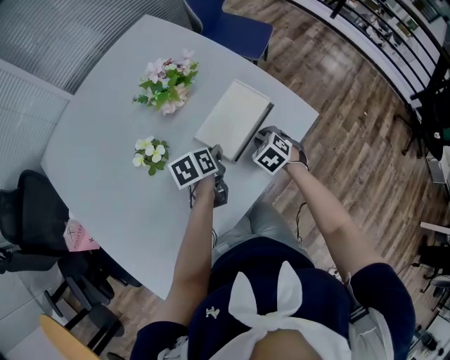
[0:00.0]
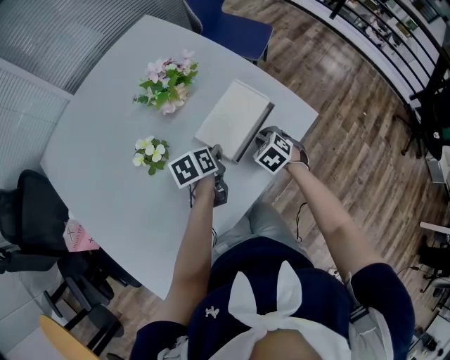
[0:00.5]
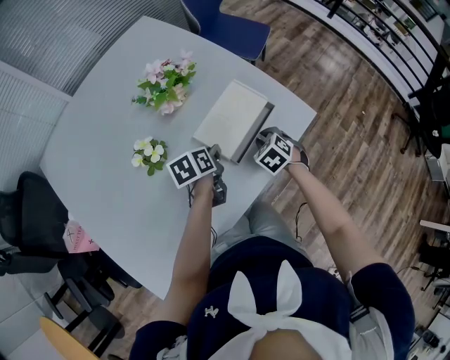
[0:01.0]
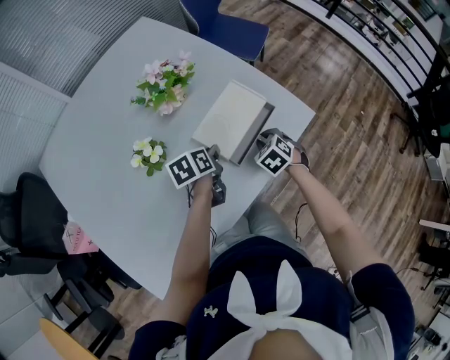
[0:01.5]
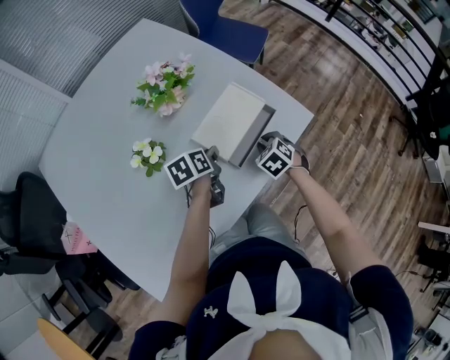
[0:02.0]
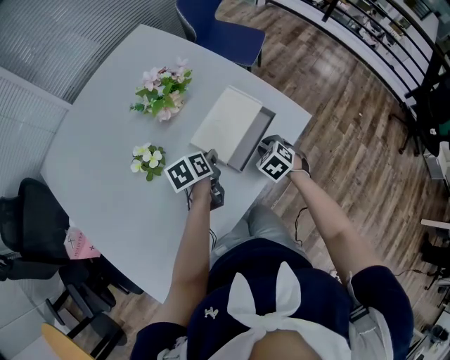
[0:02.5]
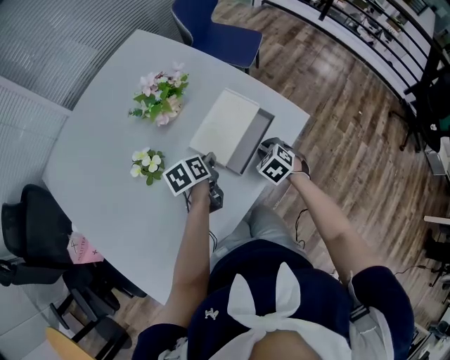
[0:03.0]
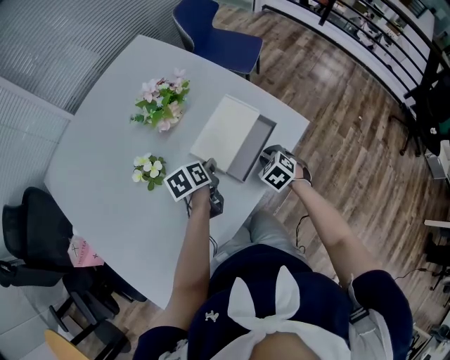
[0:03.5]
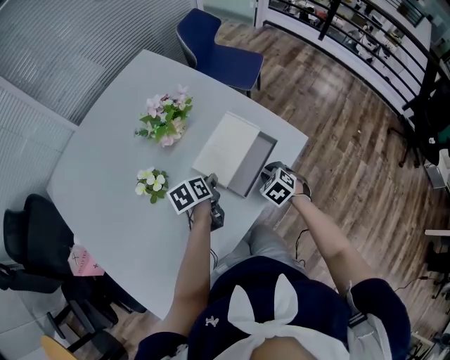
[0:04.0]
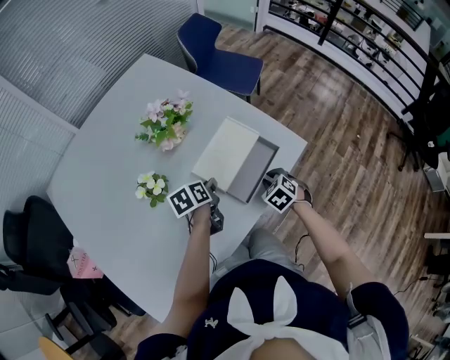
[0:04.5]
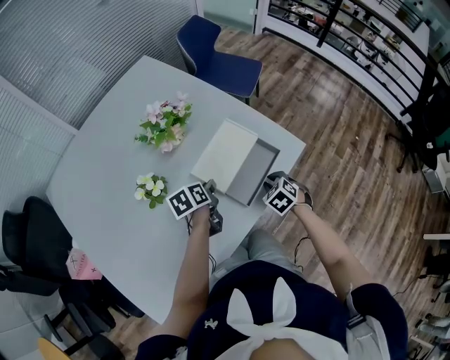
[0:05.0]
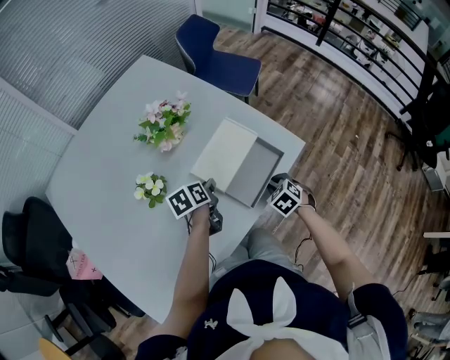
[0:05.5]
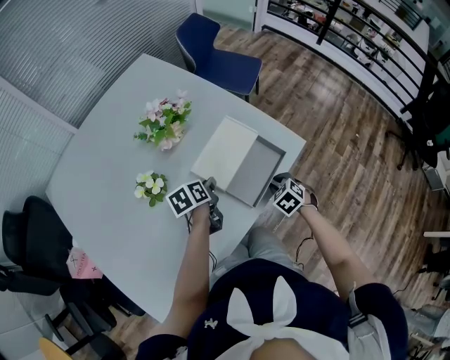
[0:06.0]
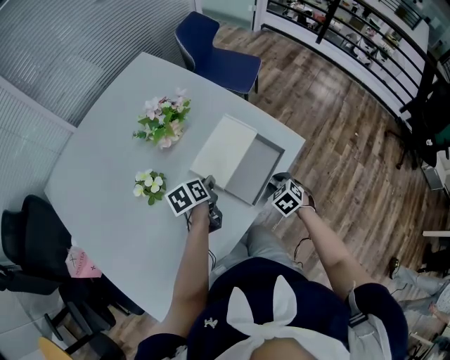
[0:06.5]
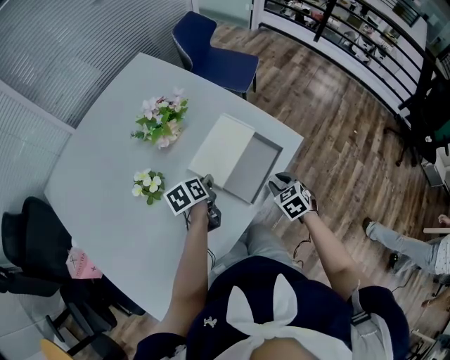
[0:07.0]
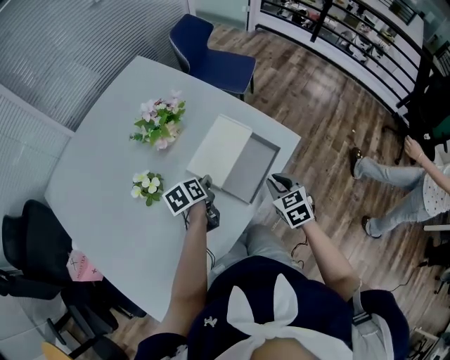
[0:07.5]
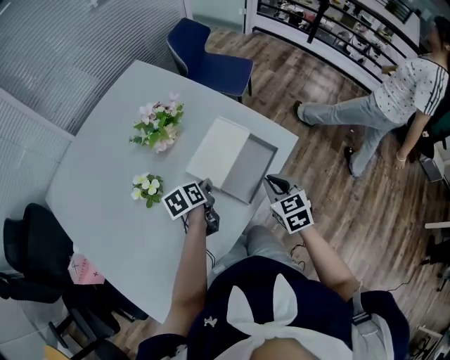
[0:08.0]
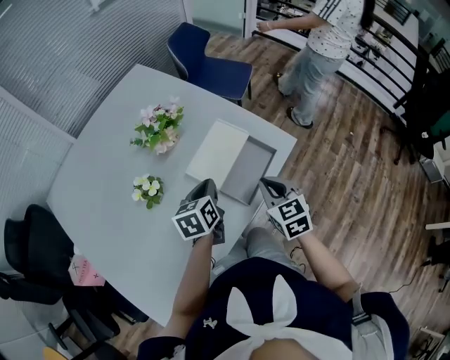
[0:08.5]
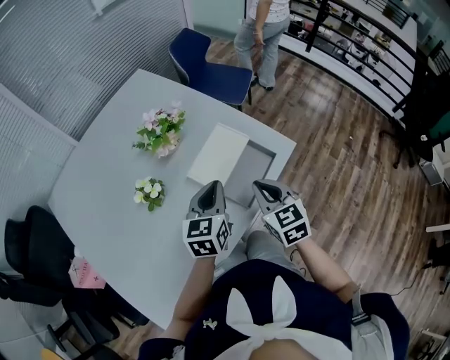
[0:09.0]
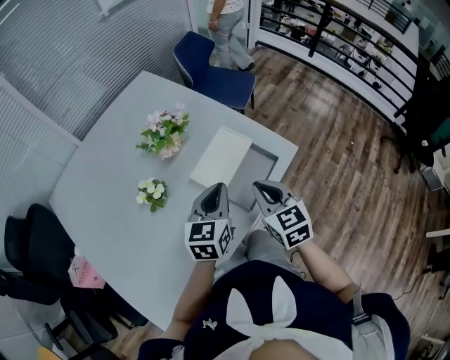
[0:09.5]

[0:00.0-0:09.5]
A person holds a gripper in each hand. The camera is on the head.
0:00.0 to 0:04.0: There are only small adjustments of the grippers.
0:04.0 to 0:05.5: There are only small adjustments of the grippers.
0:05.5 to 0:07.5: The right gripper moves upward, some 10 cm, and changes its angle by some 30 degrees.
0:07.5 to 0:09.5: The left gripper shifts about 15 cm upward, turns by some 50 degrees, and closes up; the right gripper heads upward and to the left, covering roughly 15 cm.

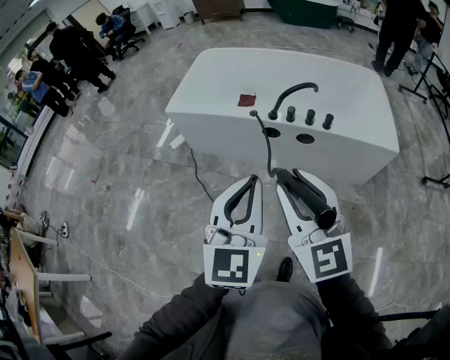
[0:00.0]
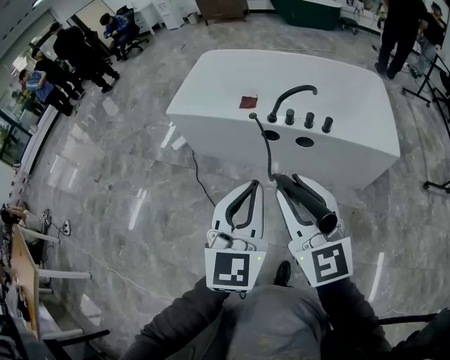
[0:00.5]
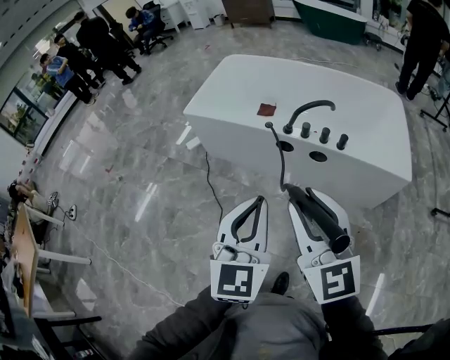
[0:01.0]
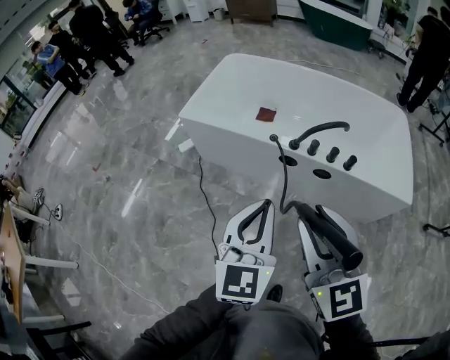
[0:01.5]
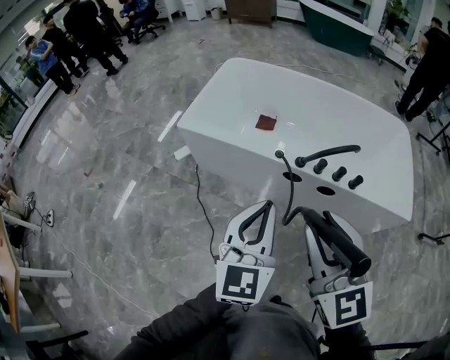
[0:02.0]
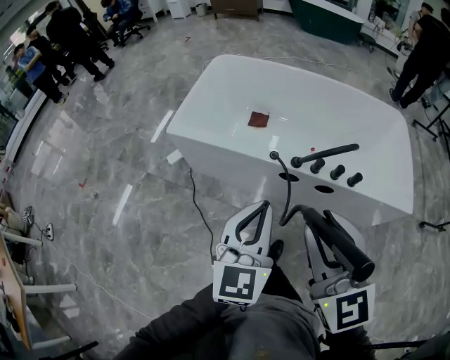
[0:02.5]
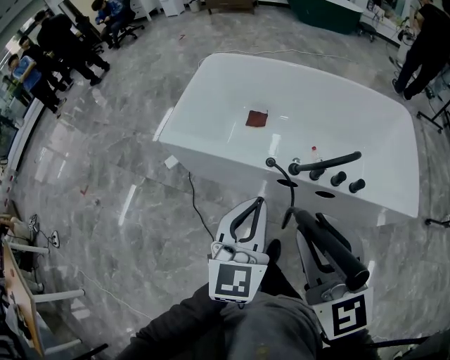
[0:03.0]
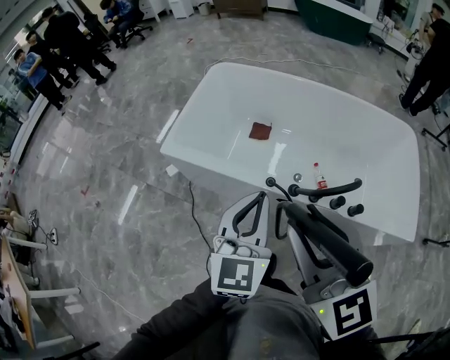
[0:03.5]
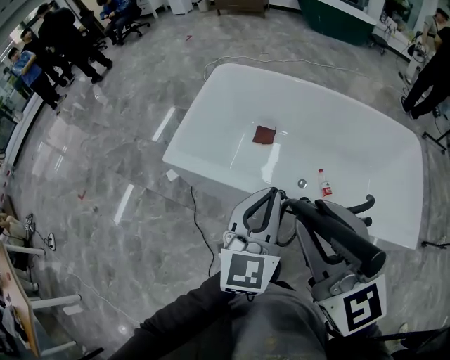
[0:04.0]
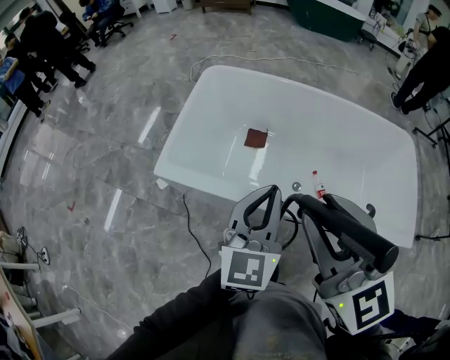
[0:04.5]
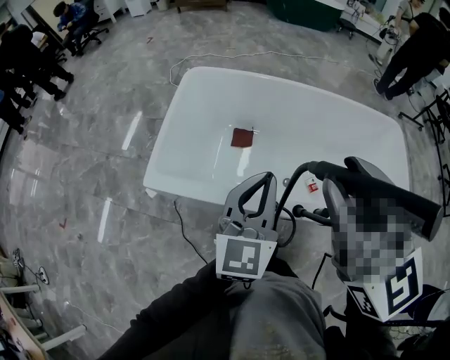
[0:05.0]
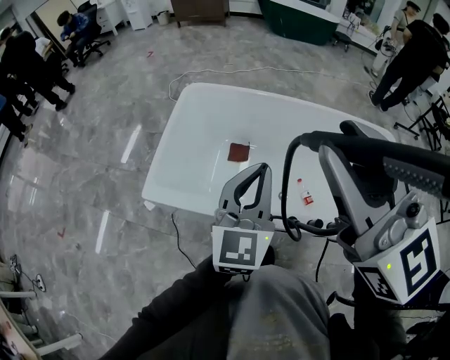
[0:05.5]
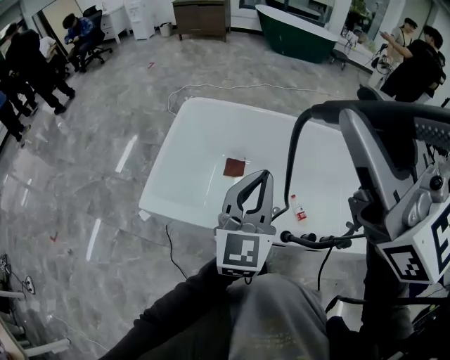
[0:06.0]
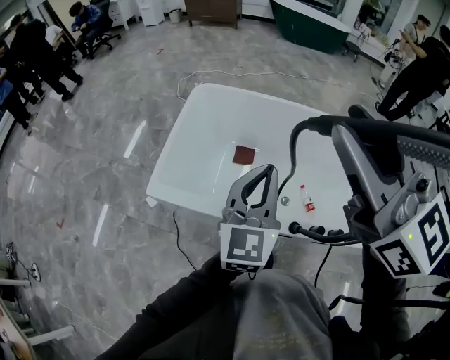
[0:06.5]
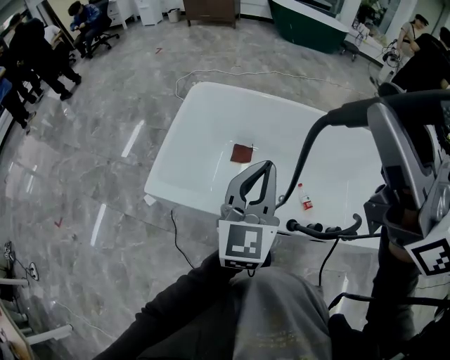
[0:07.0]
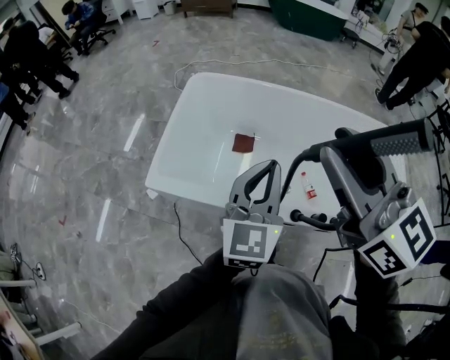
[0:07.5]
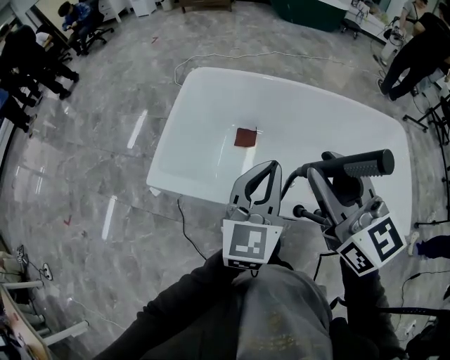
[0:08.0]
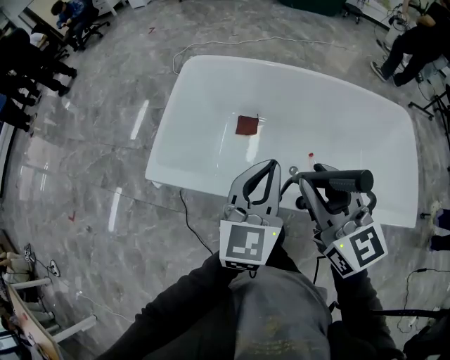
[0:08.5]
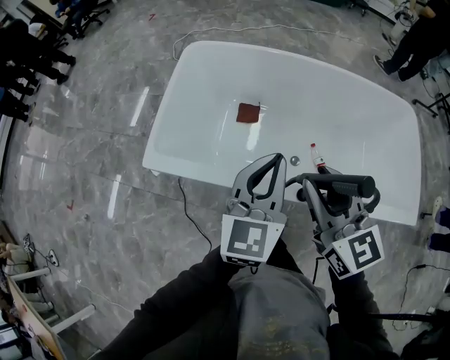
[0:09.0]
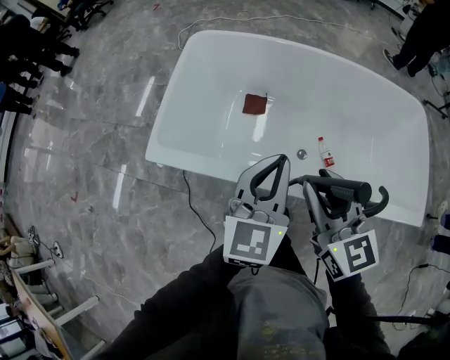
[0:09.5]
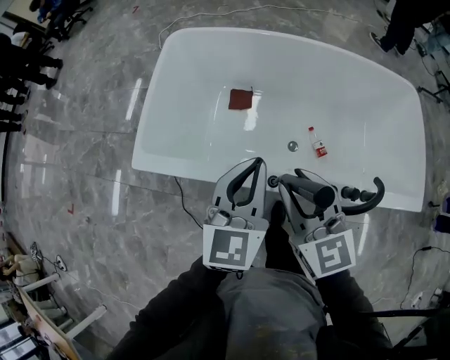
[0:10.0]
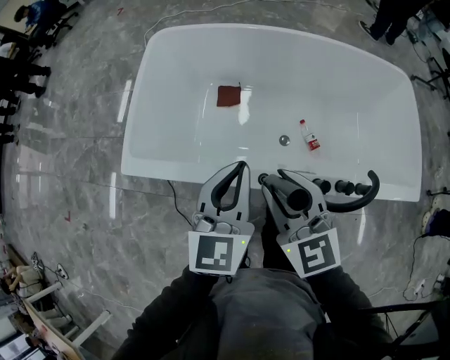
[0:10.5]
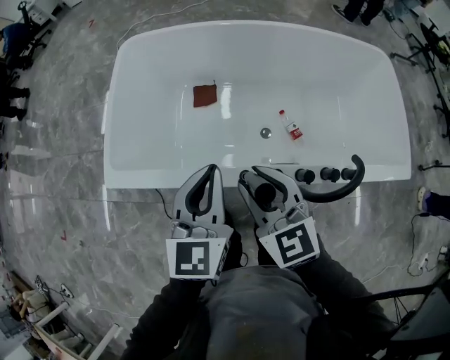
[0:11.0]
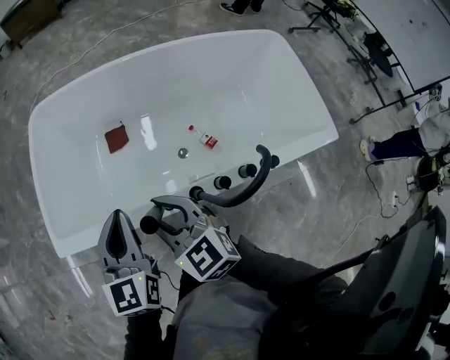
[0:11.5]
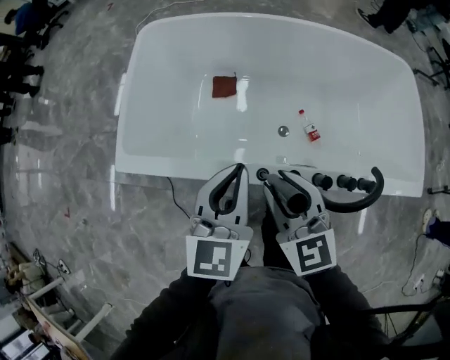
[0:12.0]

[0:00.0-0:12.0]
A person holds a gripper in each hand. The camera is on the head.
0:00.0 to 0:02.0: The grippers both shift forward by about 20 cm.
0:02.0 to 0:04.0: The grippers both shift forward by about 25 cm.
0:04.0 to 0:06.0: The left gripper goes some 15 cm forward, while the right gripper moves upward and forward, roughly 25 cm.
0:06.0 to 0:08.0: The right gripper goes some 20 cm downward, and turns by about 30 degrees.
0:08.0 to 0:10.0: The right gripper heads downward, covering about 15 cm. The left gripper moves downward, about 10 cm.
0:10.0 to 0:12.0: The right gripper shifts some 5 cm downward.

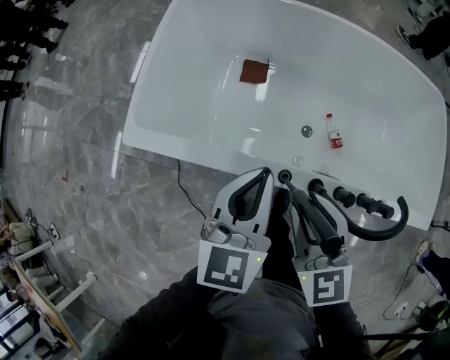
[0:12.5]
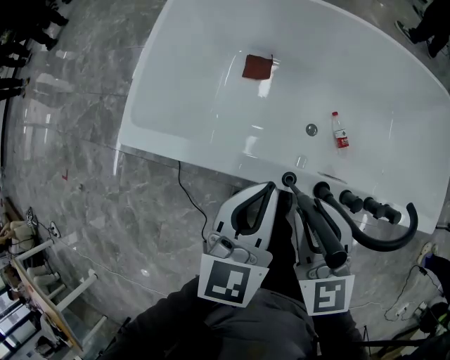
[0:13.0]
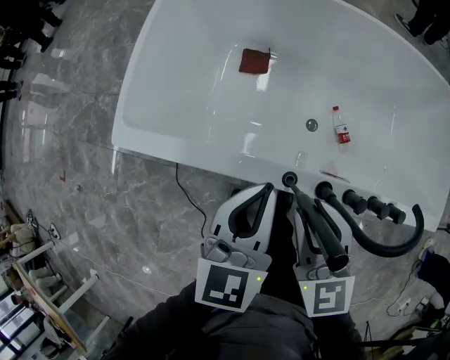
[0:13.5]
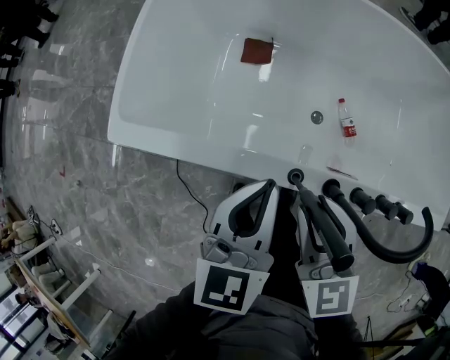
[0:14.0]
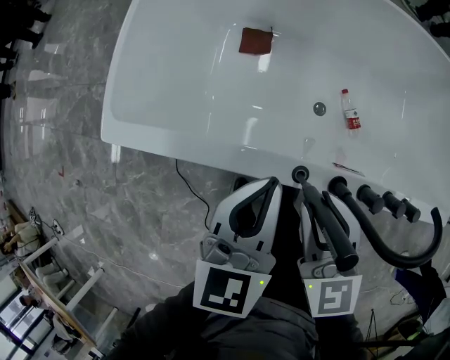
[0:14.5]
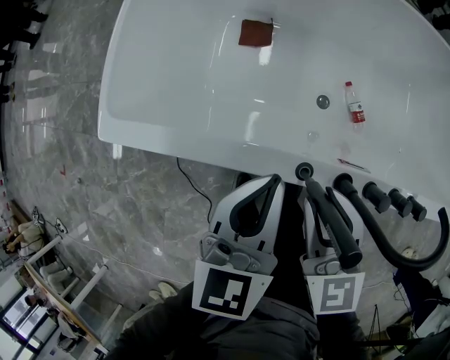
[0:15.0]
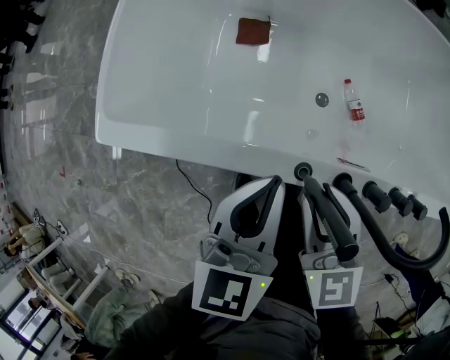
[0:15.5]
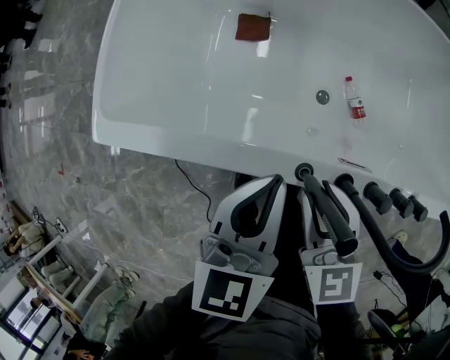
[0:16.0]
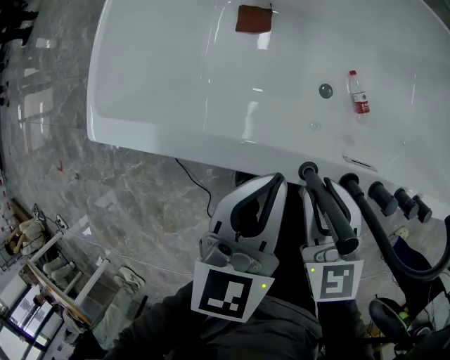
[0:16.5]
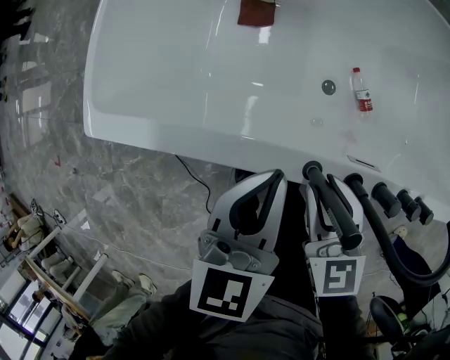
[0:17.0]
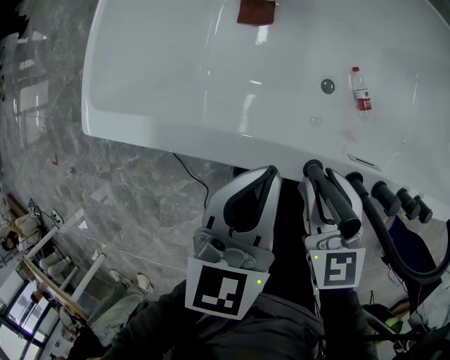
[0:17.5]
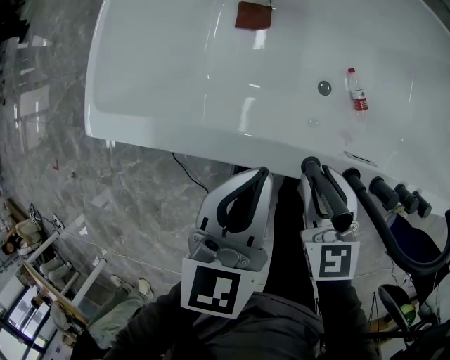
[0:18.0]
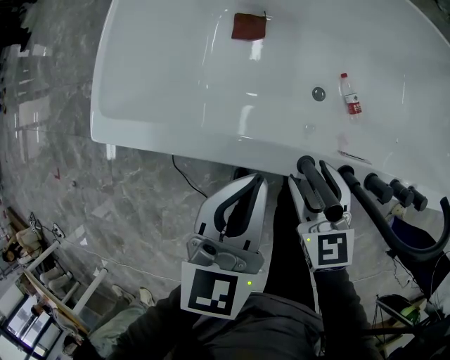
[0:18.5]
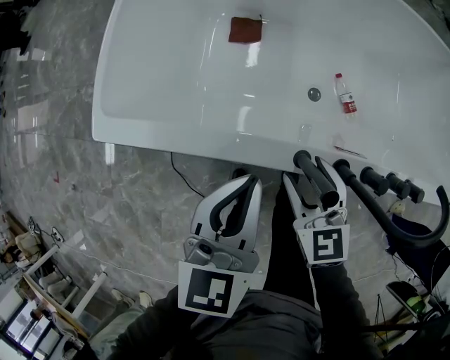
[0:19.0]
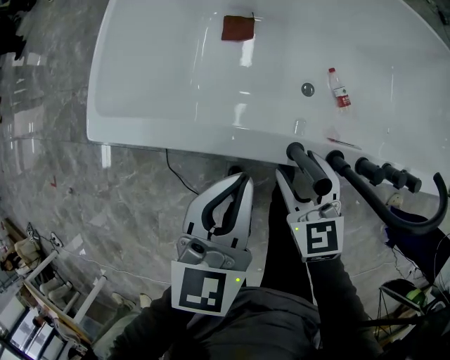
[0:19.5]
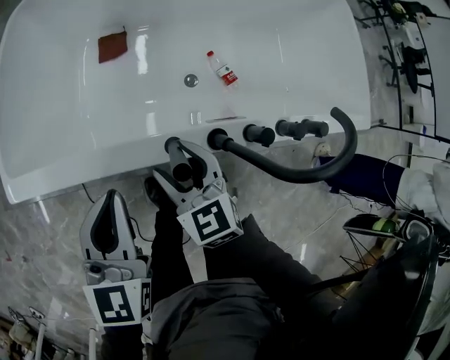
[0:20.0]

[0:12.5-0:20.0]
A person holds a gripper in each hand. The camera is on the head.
0:12.5 to 0:14.5: Both grippers move downward, about 10 cm.
0:14.5 to 0:16.5: The right gripper travels downward by some 5 cm.
0:16.5 to 0:18.0: There are only small adjustments of the grippers.
0:18.0 to 0:20.0: The left gripper moves upward, roughly 5 cm. Meanwhile the right gripper opens.
